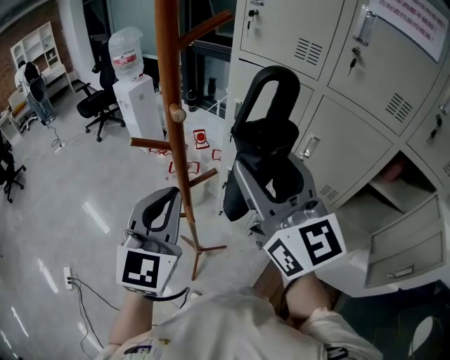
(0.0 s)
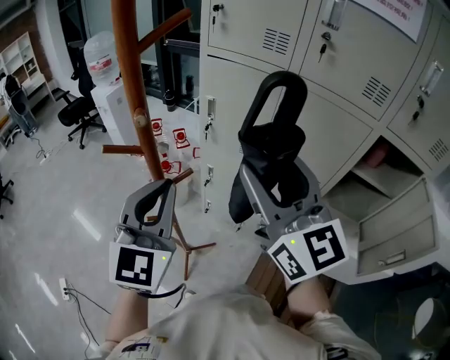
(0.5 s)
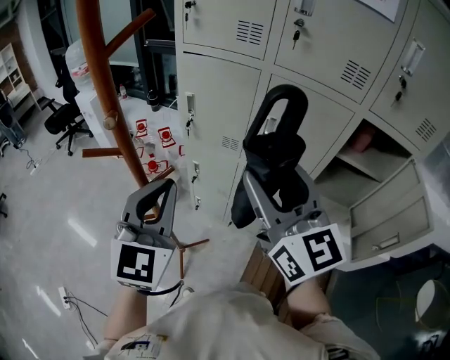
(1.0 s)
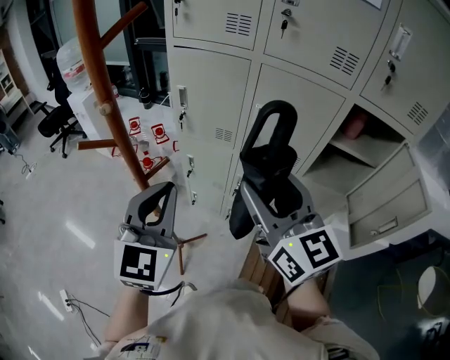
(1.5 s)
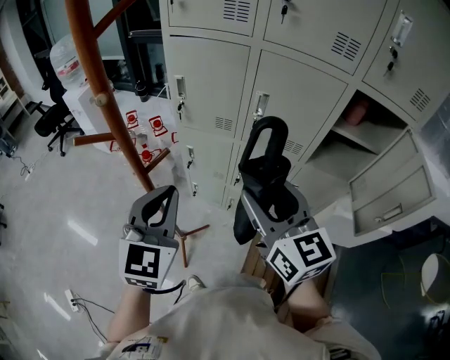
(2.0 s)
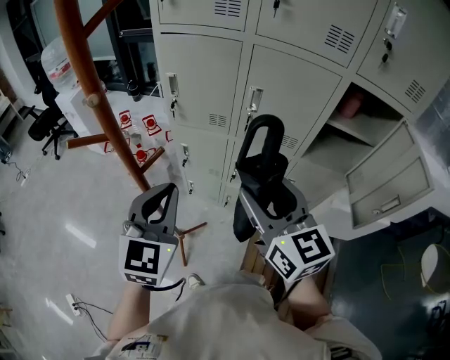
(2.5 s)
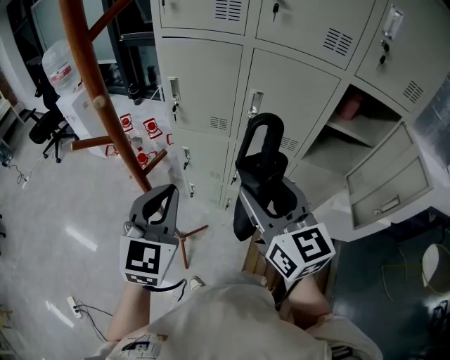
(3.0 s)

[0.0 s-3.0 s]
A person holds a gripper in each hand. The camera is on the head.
0.0 to 1.5 s: The right gripper goes some 15 cm to the right, downward and backward; the left gripper travels to the right by some 10 cm.
1.5 to 3.0 s: The right gripper goes about 5 cm downward.

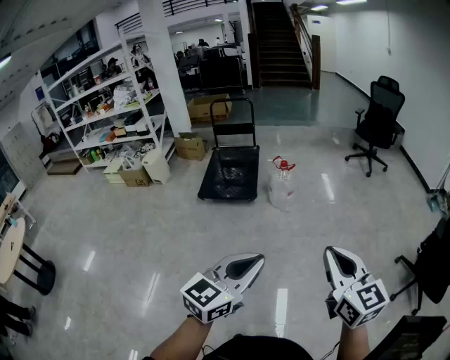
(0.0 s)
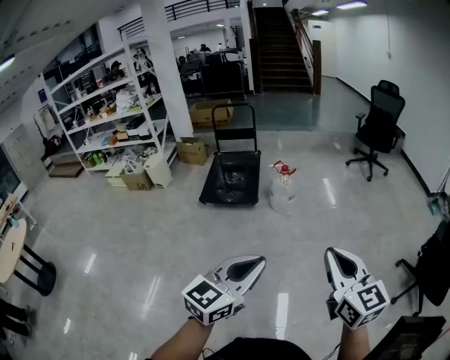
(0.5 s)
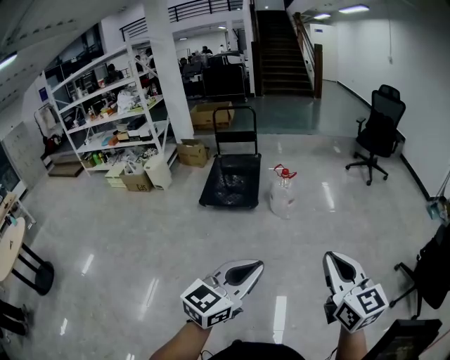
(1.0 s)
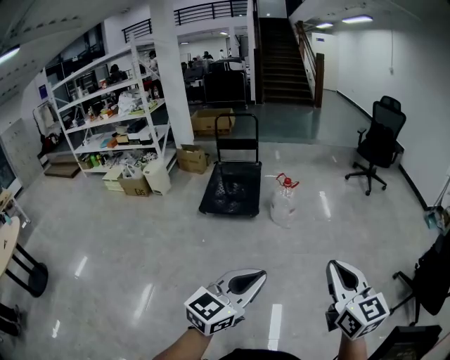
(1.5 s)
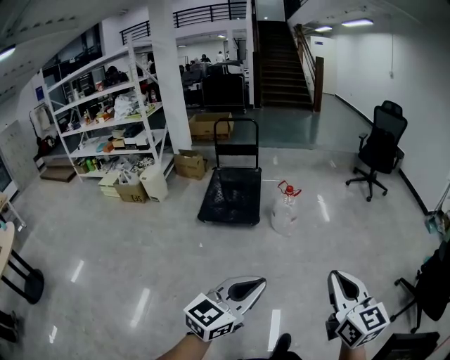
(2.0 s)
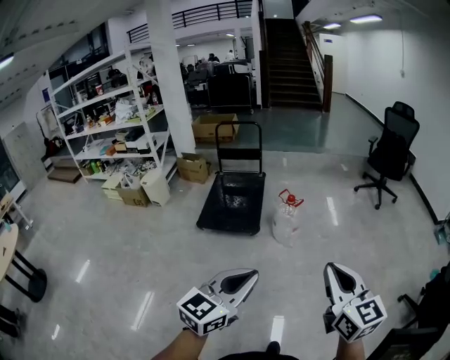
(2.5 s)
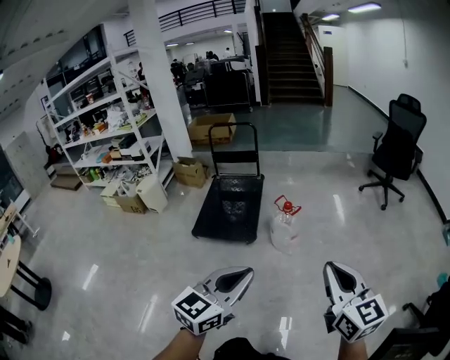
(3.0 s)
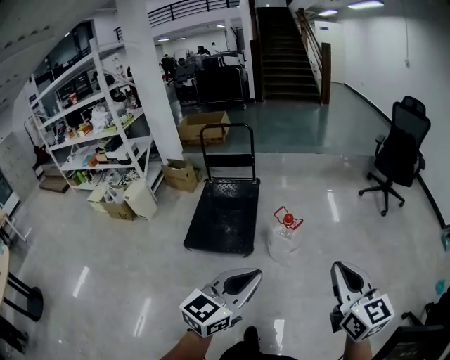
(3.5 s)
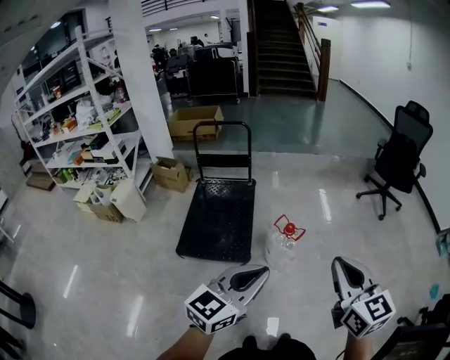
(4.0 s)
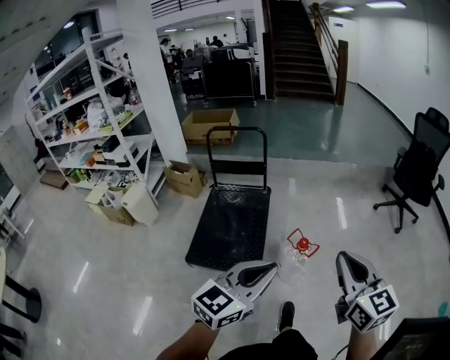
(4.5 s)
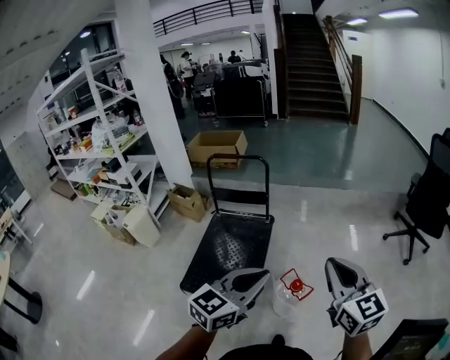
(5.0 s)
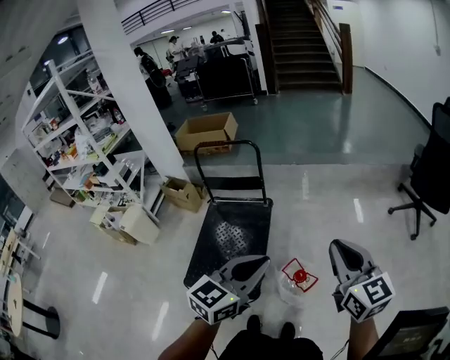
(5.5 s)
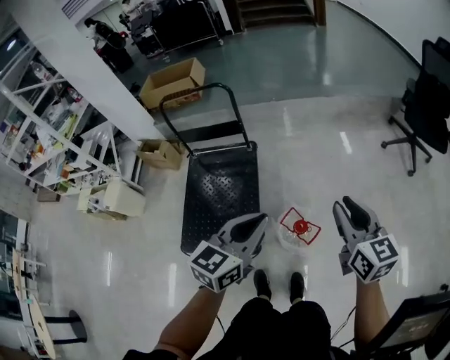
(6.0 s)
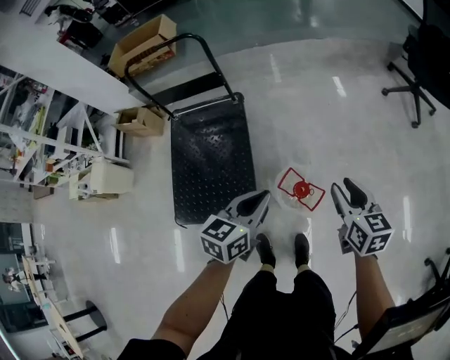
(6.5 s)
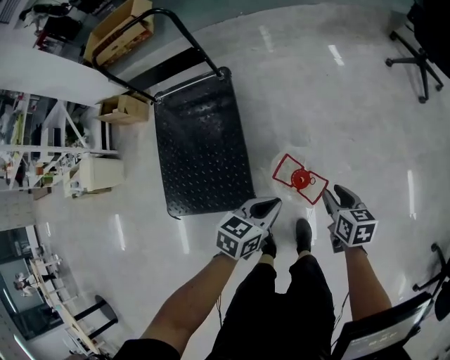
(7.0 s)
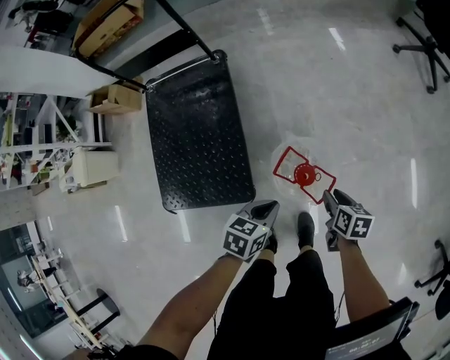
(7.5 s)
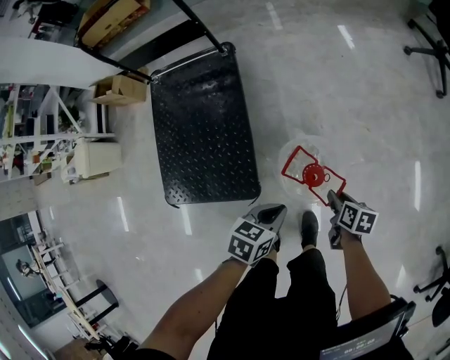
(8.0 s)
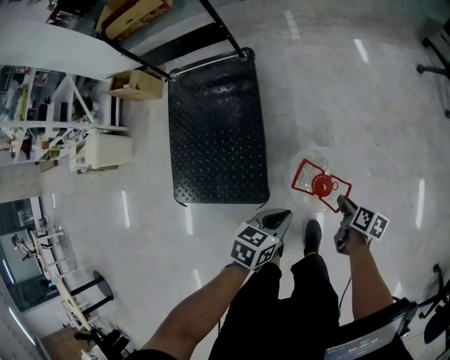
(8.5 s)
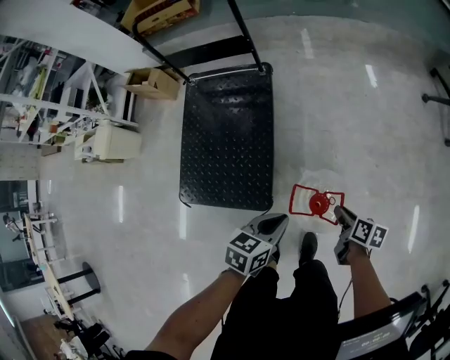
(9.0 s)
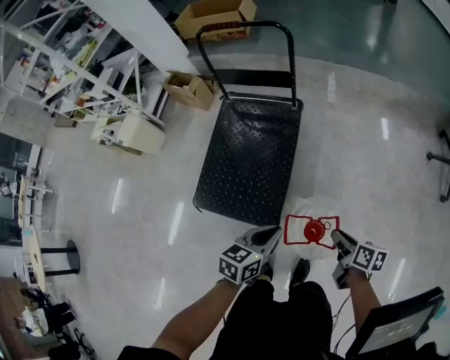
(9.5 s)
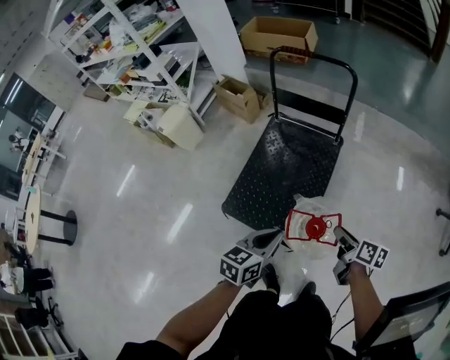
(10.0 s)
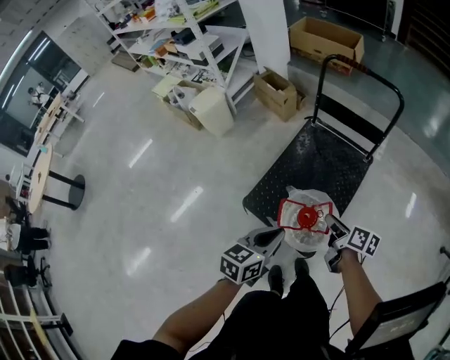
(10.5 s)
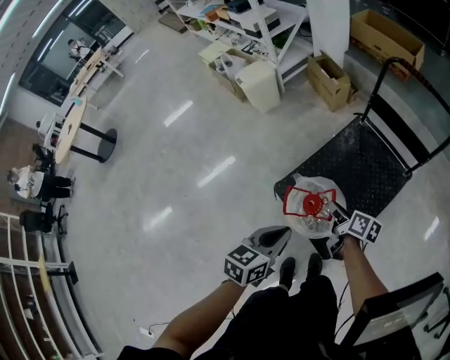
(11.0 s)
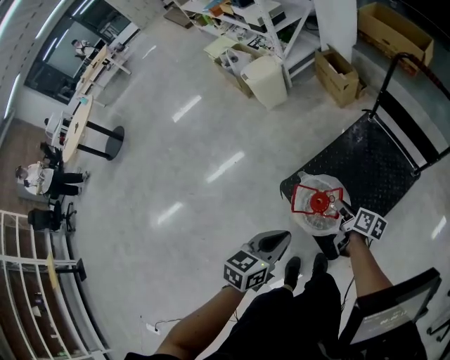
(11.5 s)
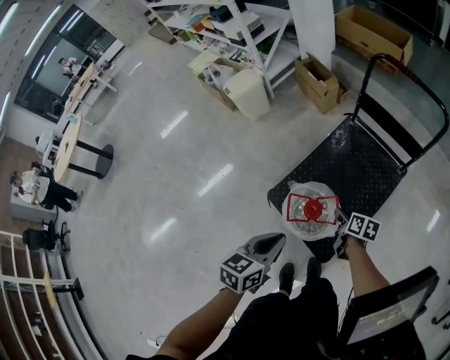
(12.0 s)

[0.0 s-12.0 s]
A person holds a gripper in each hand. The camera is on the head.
0.0 to 2.0 s: The grippers both shift to the left by some 10 cm.
2.0 to 4.0 s: Both grippers are carried forward, about 60 cm.
4.0 to 6.0 s: Both grippers are carried forward, roughly 50 cm. The right gripper opens up.
6.0 to 8.0 s: The grippers both shift downward by some 50 cm. The left gripper tilts its fingers approximately 30 degrees downward, while the right gripper tilts its fingers about 40 degrees downward.
8.0 to 10.0 s: The left gripper ends up some 40 cm from where it was, and rotates about 40 degrees, while the right gripper moves upward, about 30 cm, and swivels approximately 30 degrees.
10.0 to 12.0 s: The left gripper changes place by roughly 20 cm, and rotates roughly 20 degrees; the right gripper ends up some 30 cm from where it was, and changes its angle by some 30 degrees.

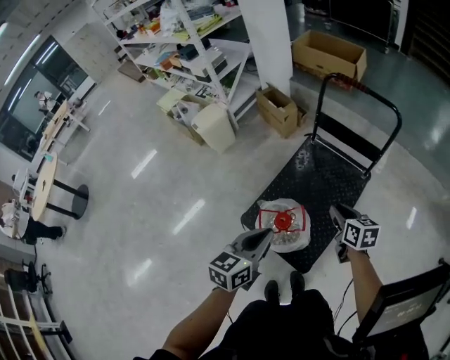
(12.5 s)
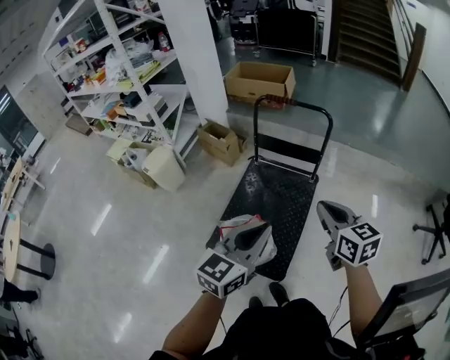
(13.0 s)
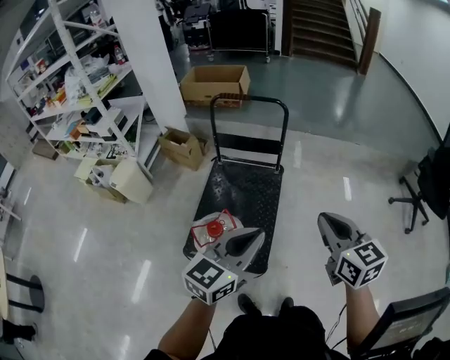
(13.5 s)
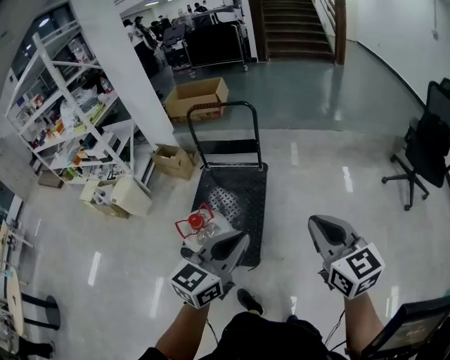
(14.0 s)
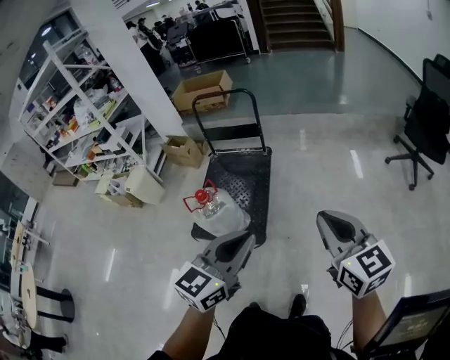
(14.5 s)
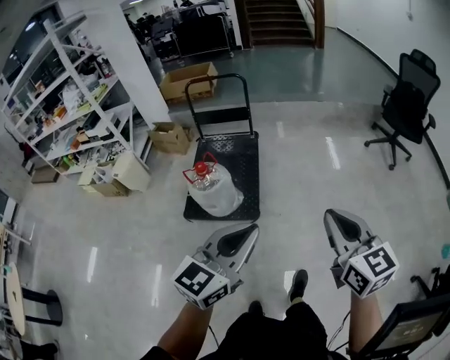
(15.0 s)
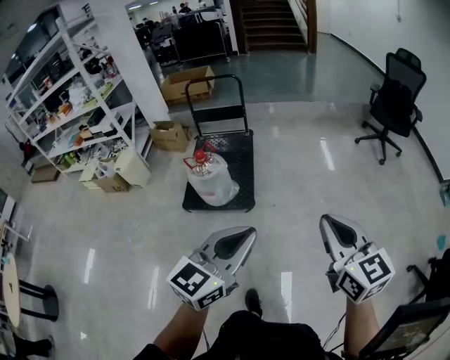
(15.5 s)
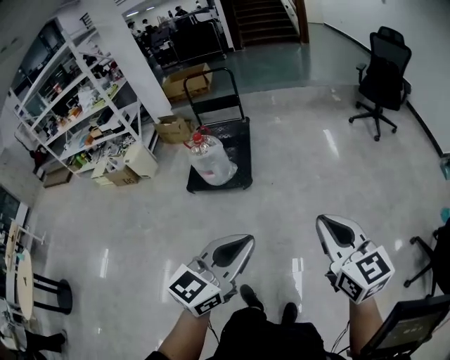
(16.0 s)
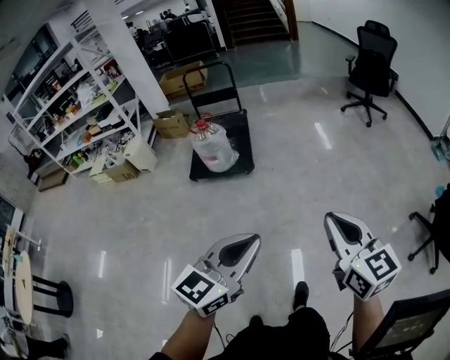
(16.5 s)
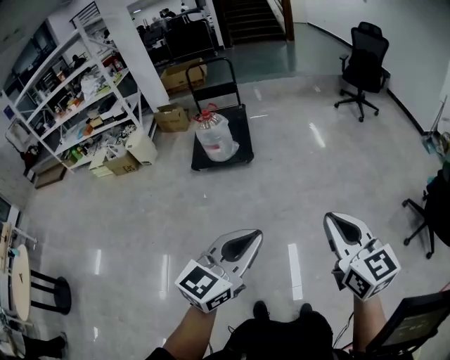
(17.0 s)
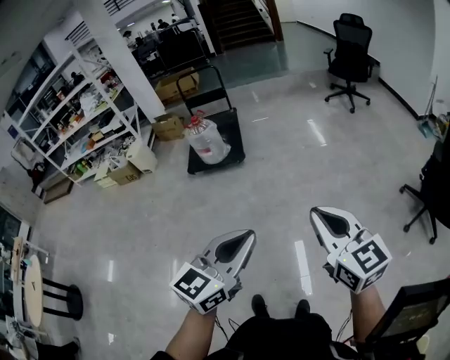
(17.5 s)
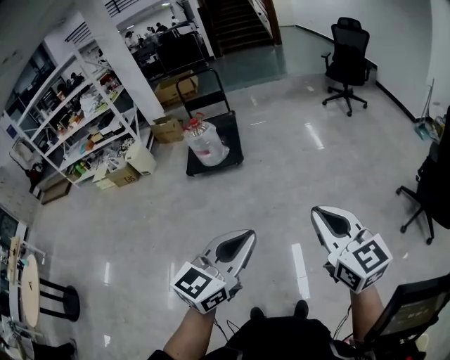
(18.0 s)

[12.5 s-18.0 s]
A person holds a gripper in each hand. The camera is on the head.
12.5 to 14.5 s: The two grippers travel together, about 60 cm. The left gripper turns by approximately 40 degrees, while the right gripper rotates approximately 40 degrees.
14.5 to 16.0 s: Both grippers are carried backward, approximately 60 cm.
16.0 to 18.0 s: Both grippers move backward, approximately 40 cm.

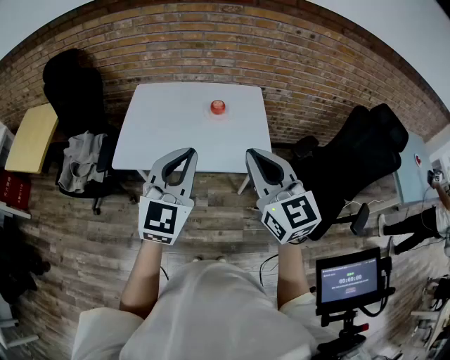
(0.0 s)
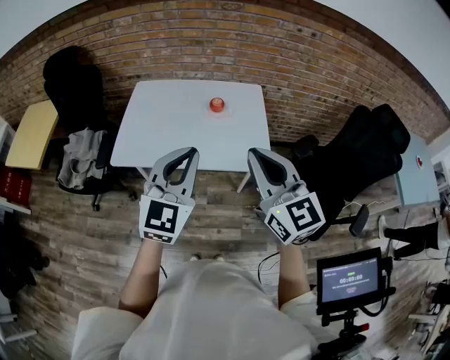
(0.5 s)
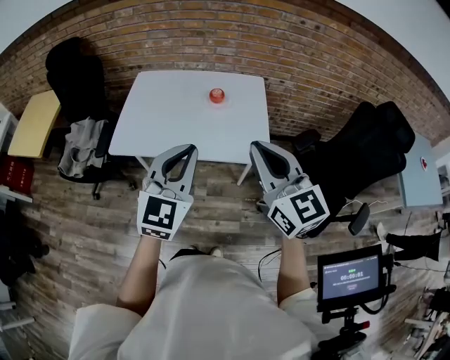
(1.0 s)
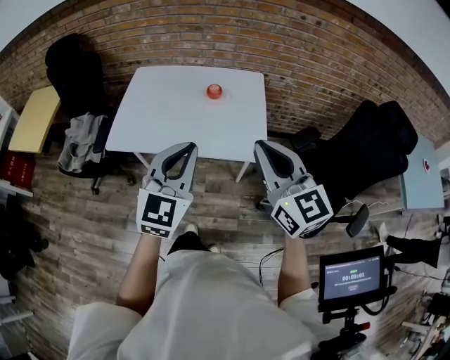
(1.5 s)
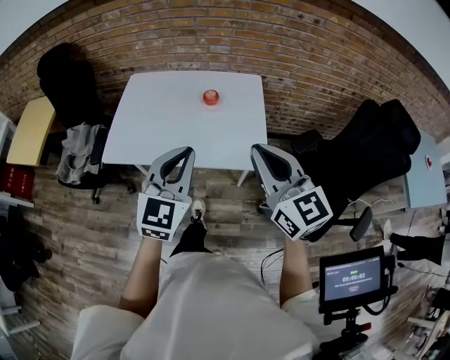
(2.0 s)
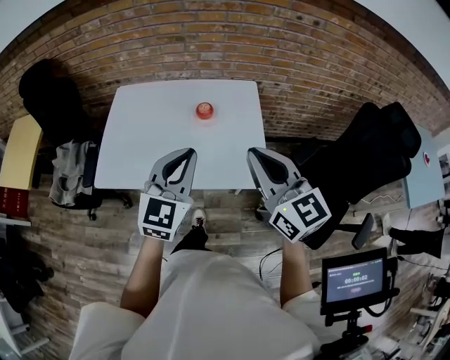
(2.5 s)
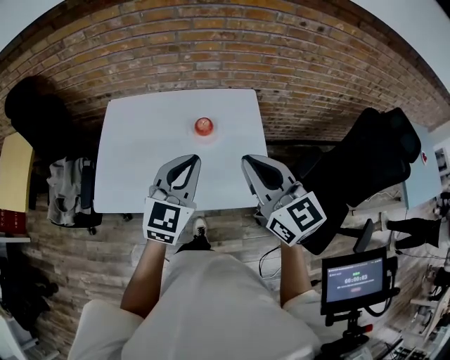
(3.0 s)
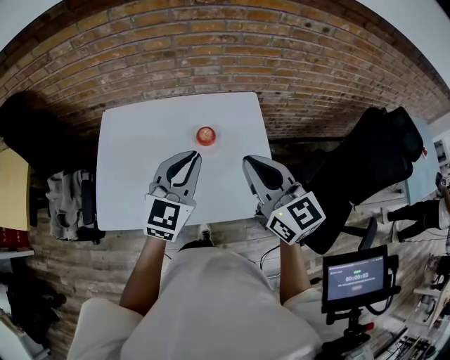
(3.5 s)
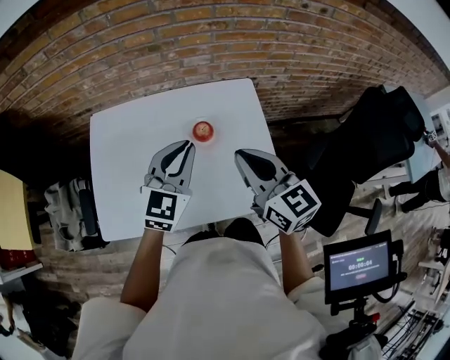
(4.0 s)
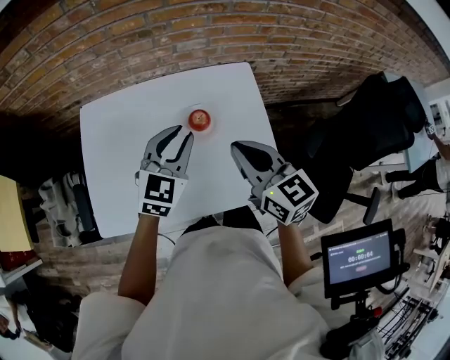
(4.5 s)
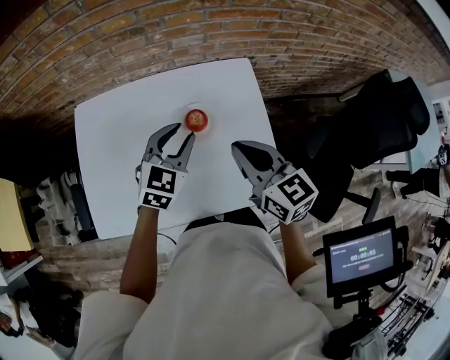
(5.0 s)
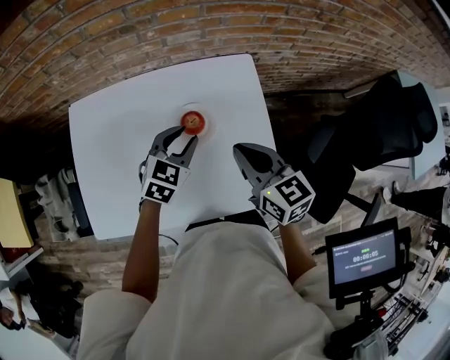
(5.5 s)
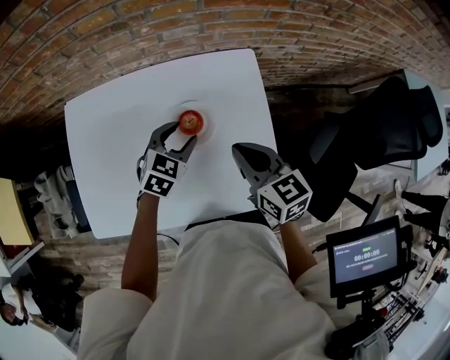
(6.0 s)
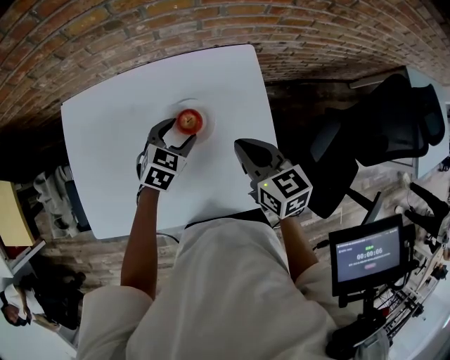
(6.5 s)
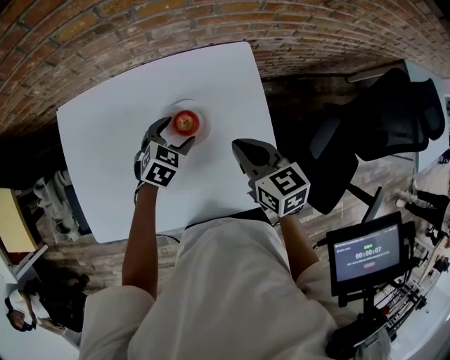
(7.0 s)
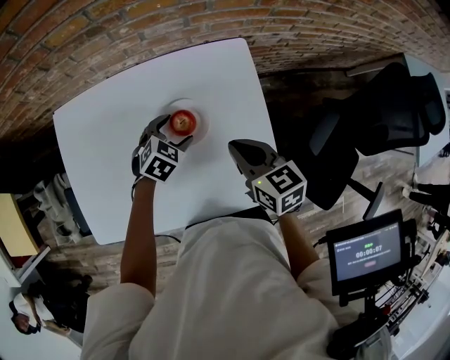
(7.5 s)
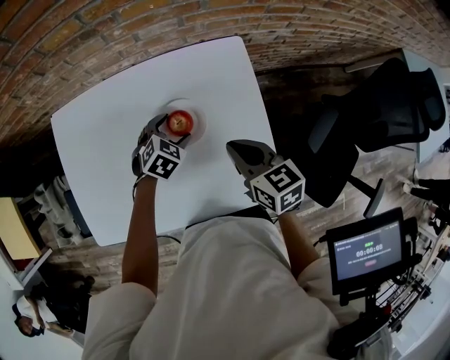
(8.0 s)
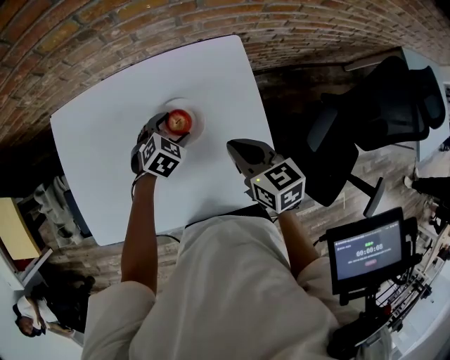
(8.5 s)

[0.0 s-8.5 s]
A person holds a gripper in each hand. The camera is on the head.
0.0 to 2.0 s: The right gripper shifts some 10 cm to the right; the left gripper travels to the right and downward by about 10 cm.
2.0 to 4.0 s: The grippers both shift forward by some 30 cm.
4.0 to 6.5 s: The grippers both shift downward and forward by approximately 20 cm. The left gripper points its fingers approximately 30 degrees further downward, and opens. The right gripper rotates about 20 degrees.
6.5 to 8.5 s: The left gripper moves downward, some 5 cm.
